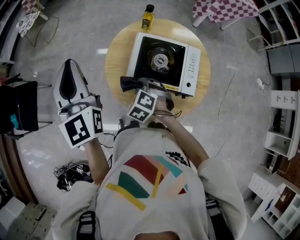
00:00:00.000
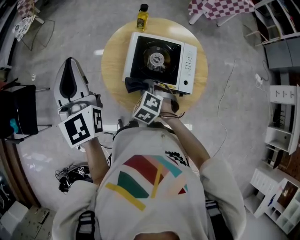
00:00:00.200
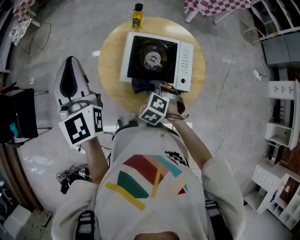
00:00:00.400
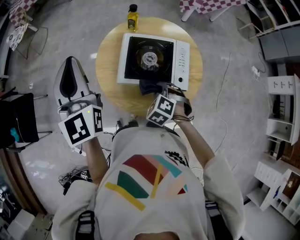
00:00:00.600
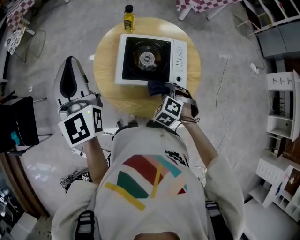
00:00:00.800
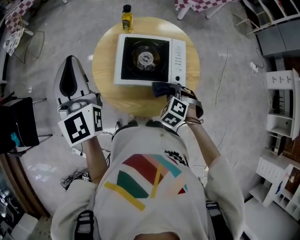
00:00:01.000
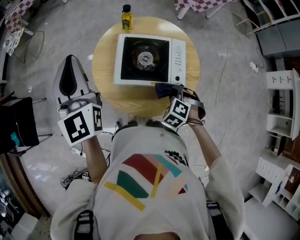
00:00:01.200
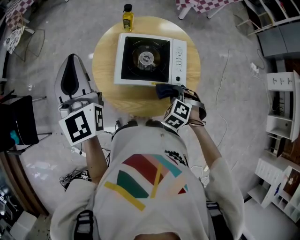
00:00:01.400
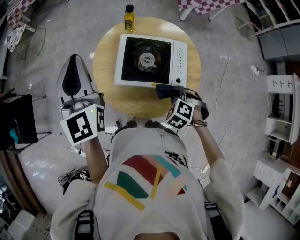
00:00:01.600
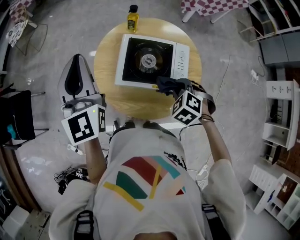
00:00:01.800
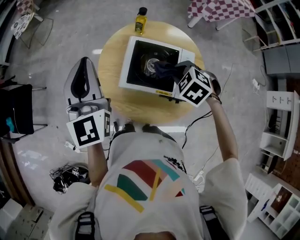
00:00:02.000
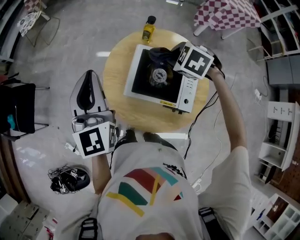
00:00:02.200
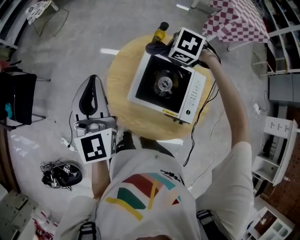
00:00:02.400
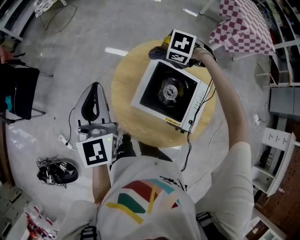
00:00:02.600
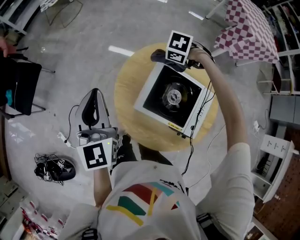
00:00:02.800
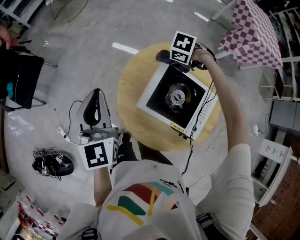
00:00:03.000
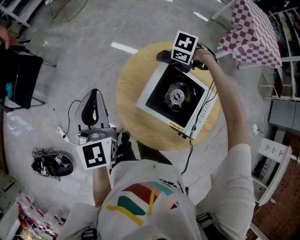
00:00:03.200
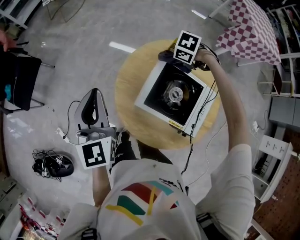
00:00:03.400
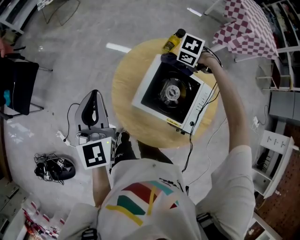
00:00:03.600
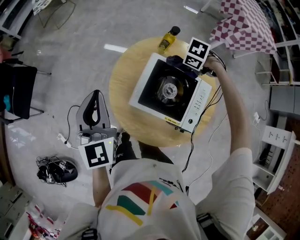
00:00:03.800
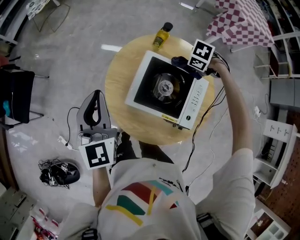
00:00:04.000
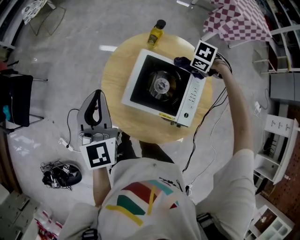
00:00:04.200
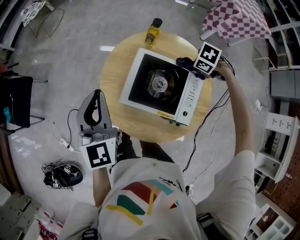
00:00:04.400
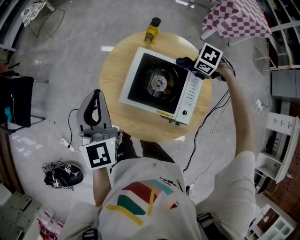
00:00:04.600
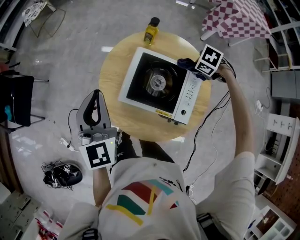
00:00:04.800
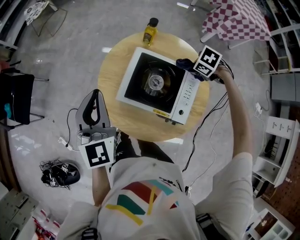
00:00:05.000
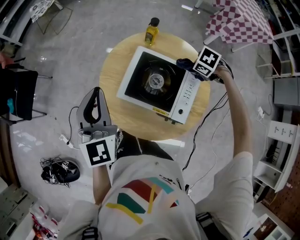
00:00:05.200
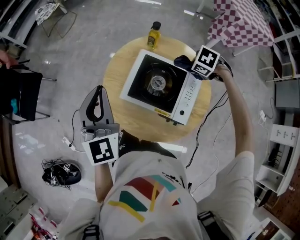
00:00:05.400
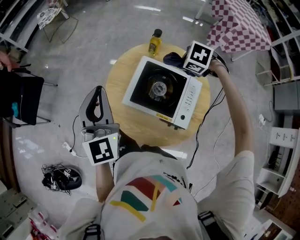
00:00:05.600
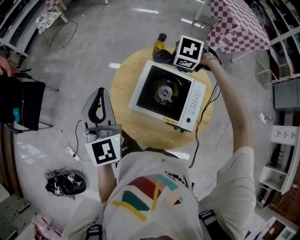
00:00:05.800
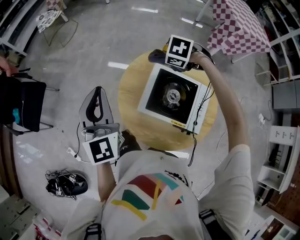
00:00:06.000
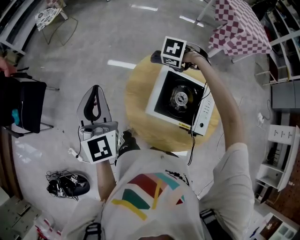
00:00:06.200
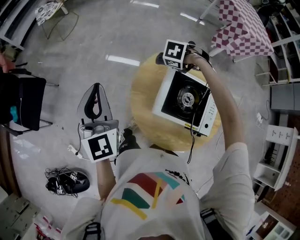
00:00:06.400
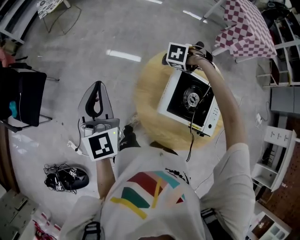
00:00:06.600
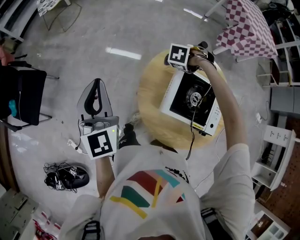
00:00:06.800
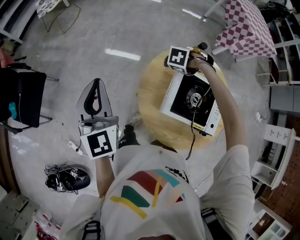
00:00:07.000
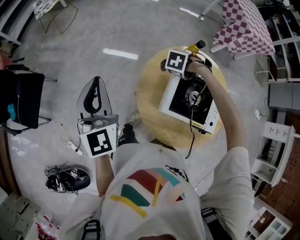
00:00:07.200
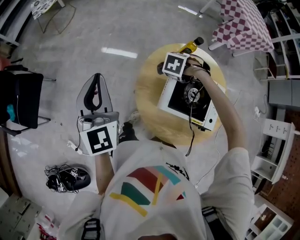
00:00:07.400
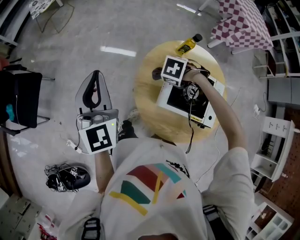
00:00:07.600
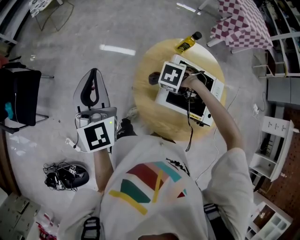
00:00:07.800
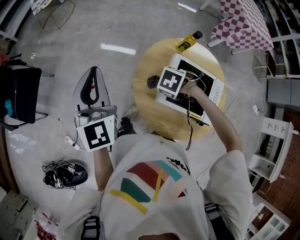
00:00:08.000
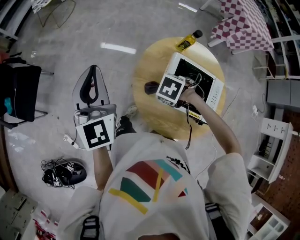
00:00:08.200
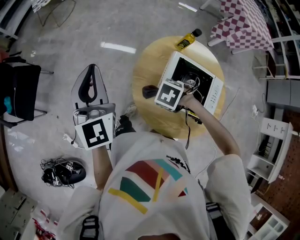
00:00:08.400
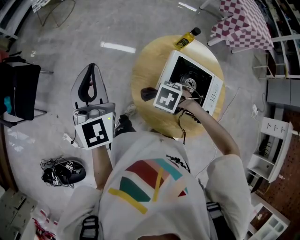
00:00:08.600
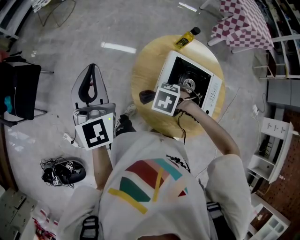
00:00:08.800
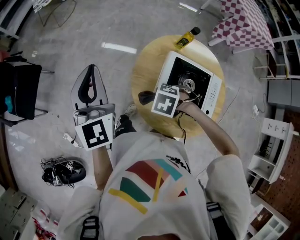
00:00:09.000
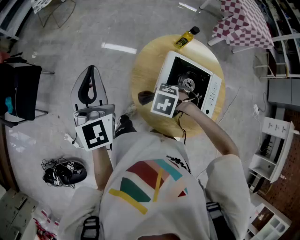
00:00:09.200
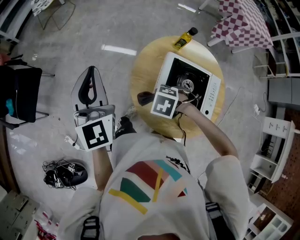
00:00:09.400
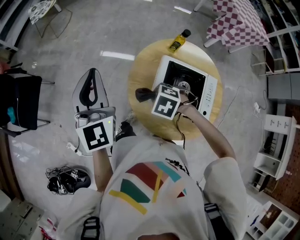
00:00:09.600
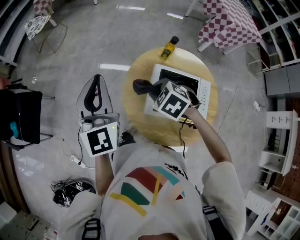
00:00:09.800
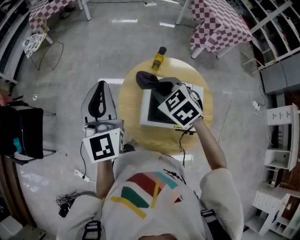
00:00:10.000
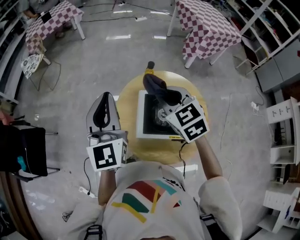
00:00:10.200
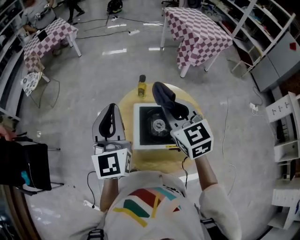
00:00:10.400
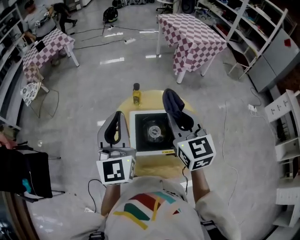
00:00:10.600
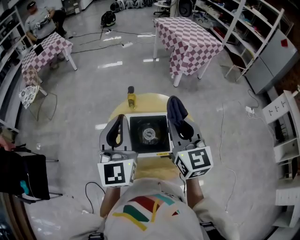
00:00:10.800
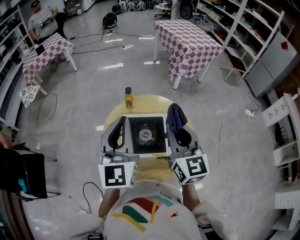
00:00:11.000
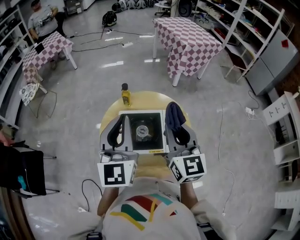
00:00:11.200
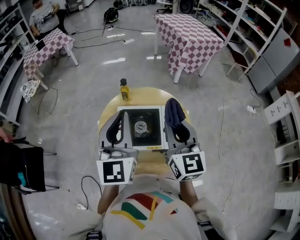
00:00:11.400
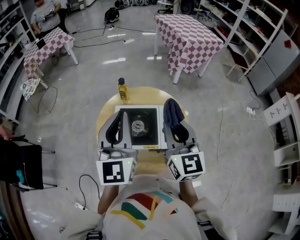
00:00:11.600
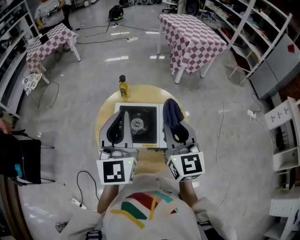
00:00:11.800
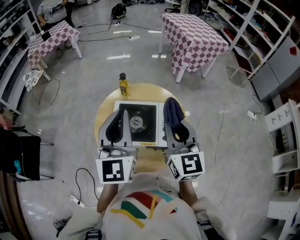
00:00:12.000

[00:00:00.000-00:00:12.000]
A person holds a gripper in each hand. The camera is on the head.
00:00:00.000 to 00:00:01.600: The left gripper shifts approximately 5 cm to the right, while the right gripper heads to the right, covering some 20 cm.
00:00:01.600 to 00:00:03.000: The left gripper is displaced downward by approximately 10 cm, and swivels about 20 degrees. Meanwhile the right gripper travels upward and back again, some 10 cm each way, and rotates some 40 degrees.
00:00:03.000 to 00:00:04.400: The right gripper changes place by about 20 cm. Meanwhile the left gripper moves approximately 10 cm.
00:00:04.400 to 00:00:06.000: The left gripper shifts by some 10 cm, while the right gripper moves roughly 25 cm.
00:00:06.000 to 00:00:07.600: The left gripper changes place by about 15 cm; the right gripper ends up approximately 15 cm from where it was.
00:00:07.600 to 00:00:09.000: The right gripper shifts by some 15 cm.
00:00:09.000 to 00:00:10.400: The left gripper shifts by approximately 25 cm, and rotates roughly 20 degrees. The right gripper is displaced upward by about 30 cm, and tilts its fingers about 60 degrees upward.
00:00:10.400 to 00:00:12.000: Both grippers move to the right and backward, roughly 15 cm. The right gripper swivels some 20 degrees.

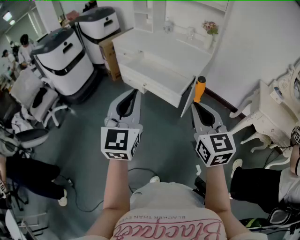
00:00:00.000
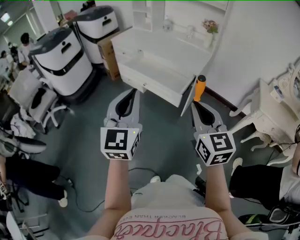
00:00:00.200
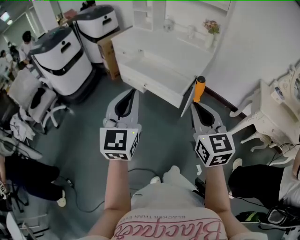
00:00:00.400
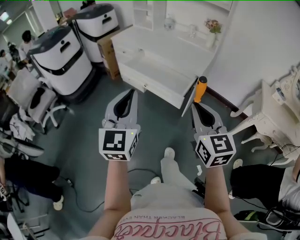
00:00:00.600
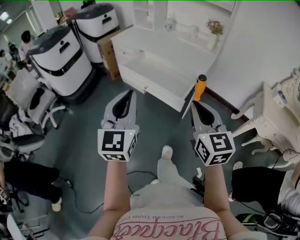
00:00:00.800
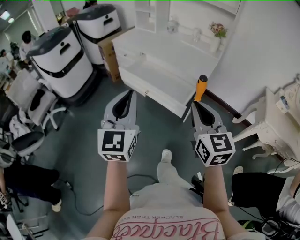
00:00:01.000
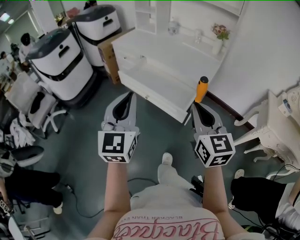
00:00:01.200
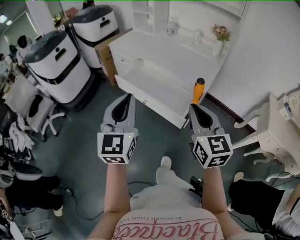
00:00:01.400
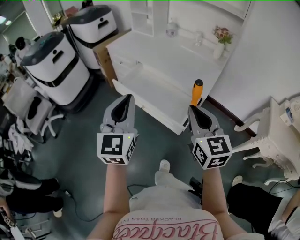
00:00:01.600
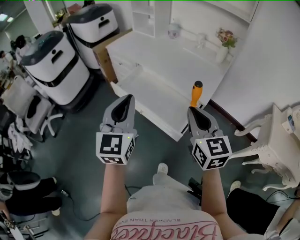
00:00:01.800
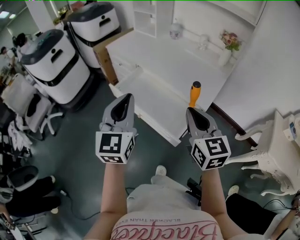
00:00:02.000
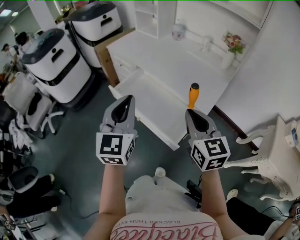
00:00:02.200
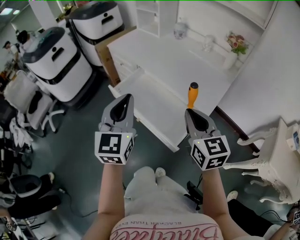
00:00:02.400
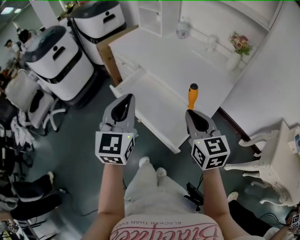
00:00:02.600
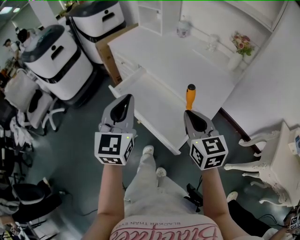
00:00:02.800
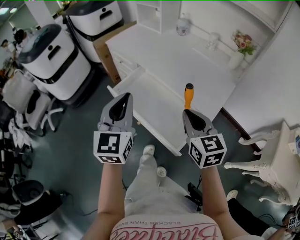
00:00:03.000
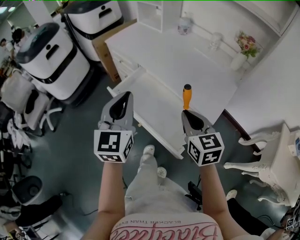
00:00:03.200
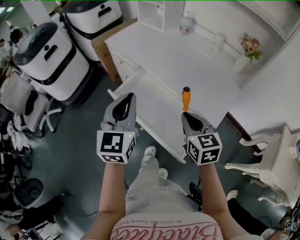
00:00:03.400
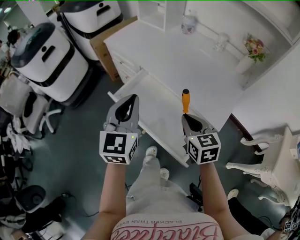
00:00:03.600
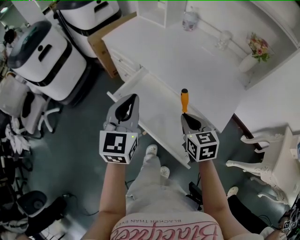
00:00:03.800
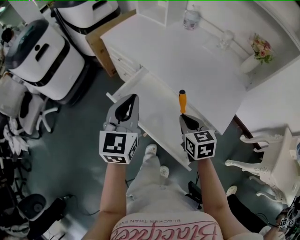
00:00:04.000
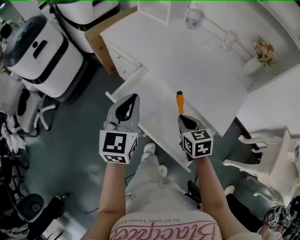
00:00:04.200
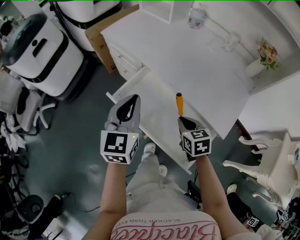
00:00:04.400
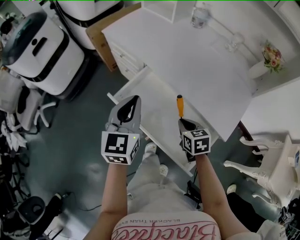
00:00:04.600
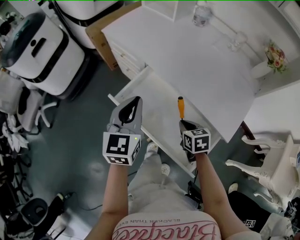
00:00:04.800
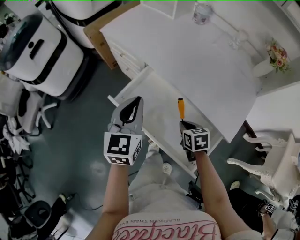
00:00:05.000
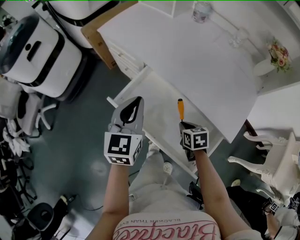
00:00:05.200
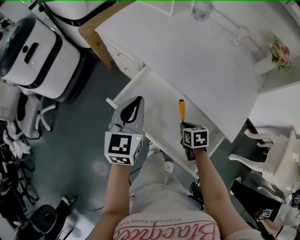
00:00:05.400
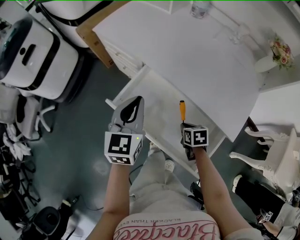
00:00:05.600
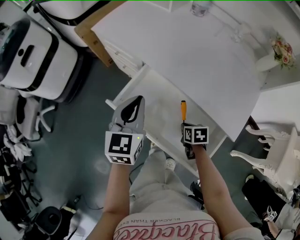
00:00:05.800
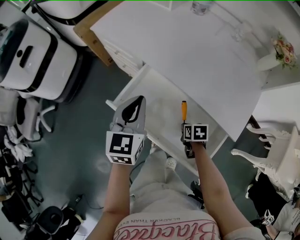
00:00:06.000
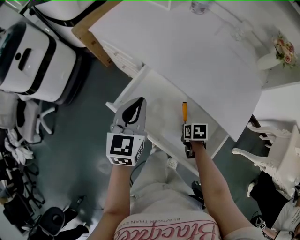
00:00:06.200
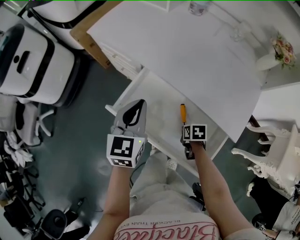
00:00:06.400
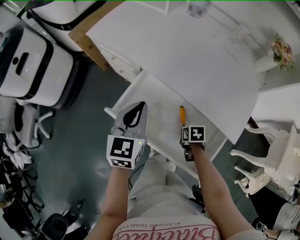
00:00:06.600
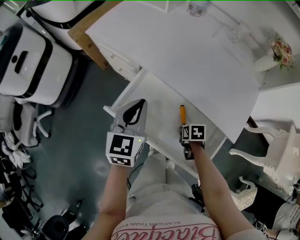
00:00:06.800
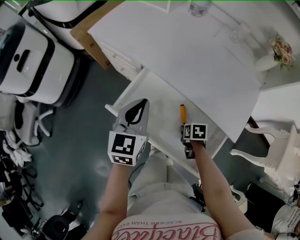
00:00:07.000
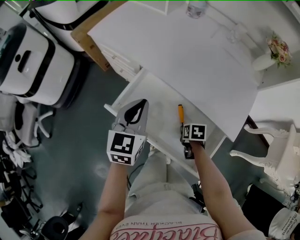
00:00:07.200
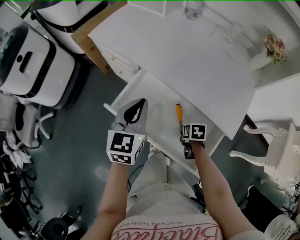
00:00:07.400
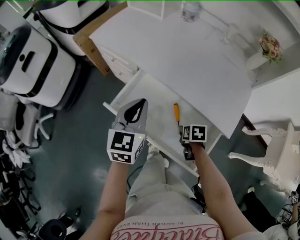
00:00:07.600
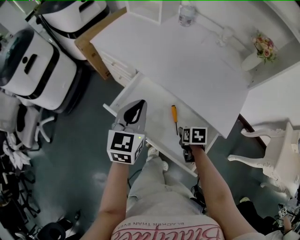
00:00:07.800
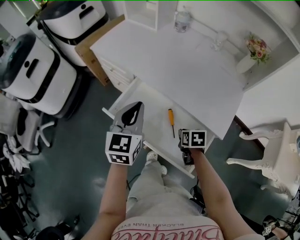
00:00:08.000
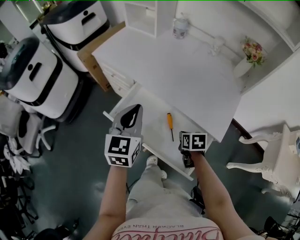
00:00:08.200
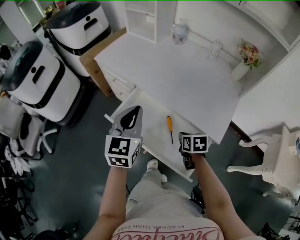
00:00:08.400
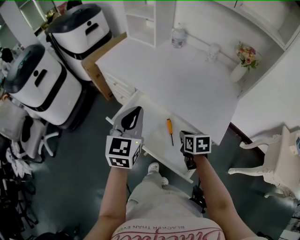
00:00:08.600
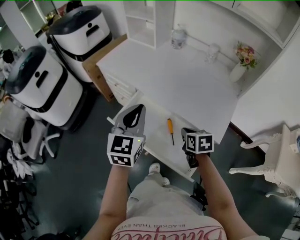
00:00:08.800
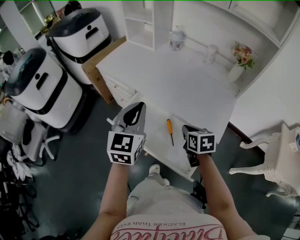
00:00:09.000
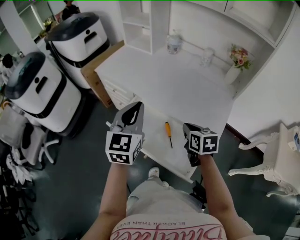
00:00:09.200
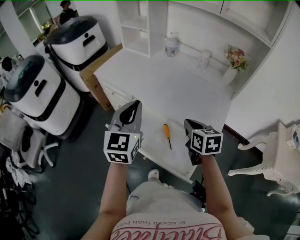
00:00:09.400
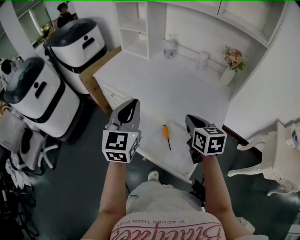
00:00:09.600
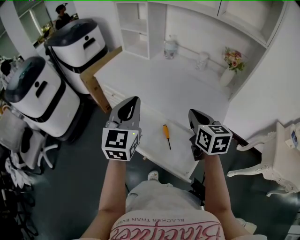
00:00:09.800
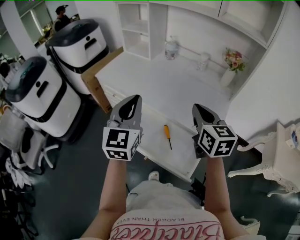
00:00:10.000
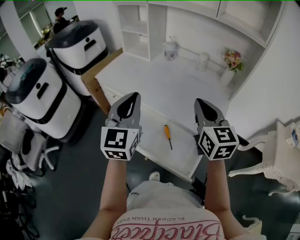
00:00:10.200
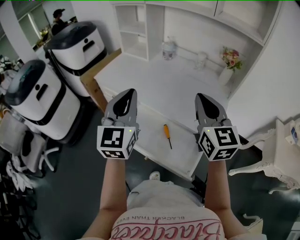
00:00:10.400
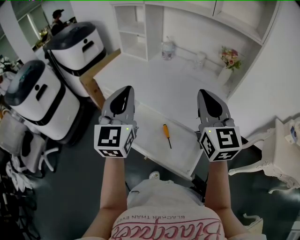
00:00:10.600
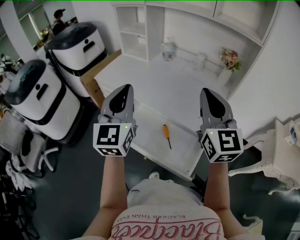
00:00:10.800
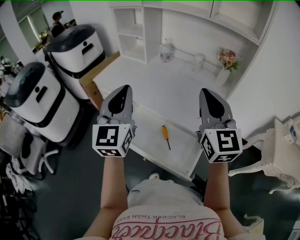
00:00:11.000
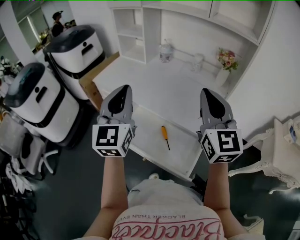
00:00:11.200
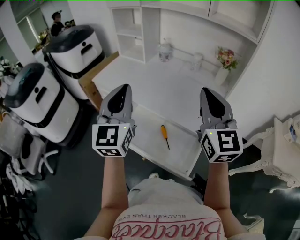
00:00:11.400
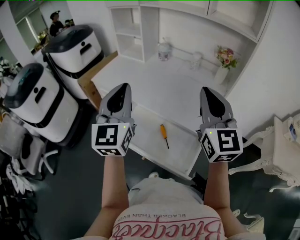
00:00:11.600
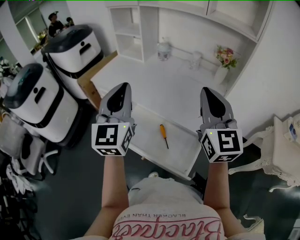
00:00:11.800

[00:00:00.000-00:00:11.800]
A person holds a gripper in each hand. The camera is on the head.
00:00:00.000 to 00:00:01.400: The grippers both shift forward by approximately 20 cm.
00:00:01.400 to 00:00:03.000: Both grippers move forward, about 20 cm.
00:00:03.000 to 00:00:04.400: The right gripper goes some 20 cm downward and forward, and changes its angle by roughly 30 degrees. The left gripper goes roughly 15 cm forward and downward.
00:00:04.400 to 00:00:06.000: The right gripper travels downward by approximately 15 cm, and changes its angle by some 40 degrees. Meanwhile the left gripper is displaced forward and downward by about 10 cm.
00:00:06.000 to 00:00:07.400: The right gripper opens.
00:00:07.400 to 00:00:08.800: The left gripper goes some 10 cm upward. Meanwhile the right gripper shifts roughly 15 cm upward, swivels approximately 30 degrees, and closes its fingers.
00:00:08.800 to 00:00:10.400: The right gripper is displaced upward by roughly 30 cm, and tilts its fingers approximately 50 degrees upward; the left gripper heads upward, covering approximately 10 cm.
00:00:10.400 to 00:00:11.800: The right gripper ends up approximately 5 cm from where it was.
